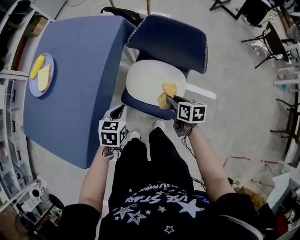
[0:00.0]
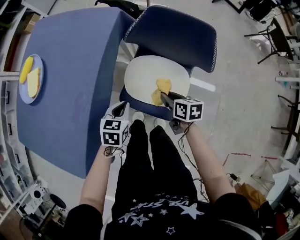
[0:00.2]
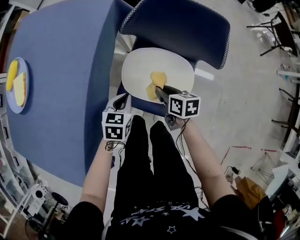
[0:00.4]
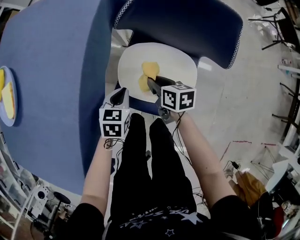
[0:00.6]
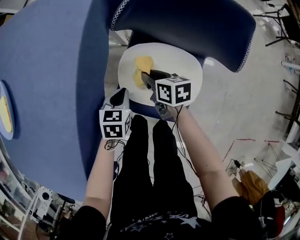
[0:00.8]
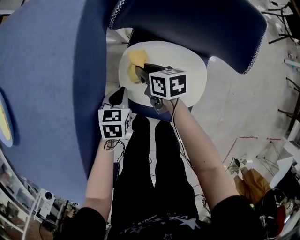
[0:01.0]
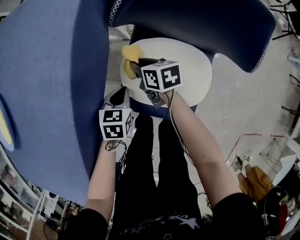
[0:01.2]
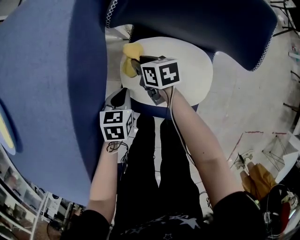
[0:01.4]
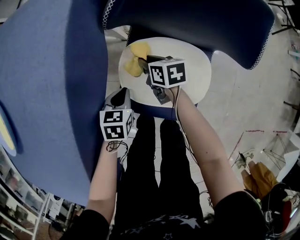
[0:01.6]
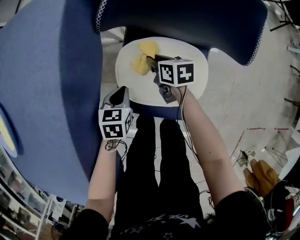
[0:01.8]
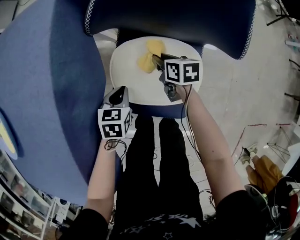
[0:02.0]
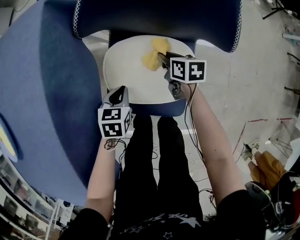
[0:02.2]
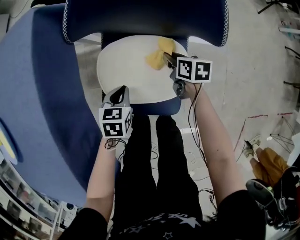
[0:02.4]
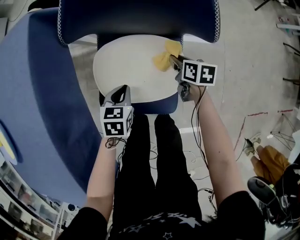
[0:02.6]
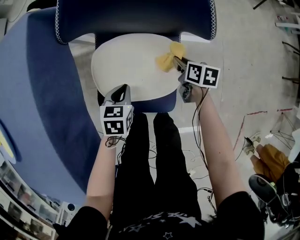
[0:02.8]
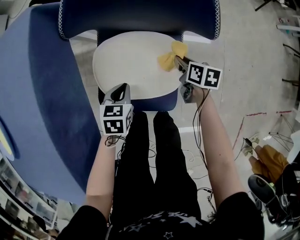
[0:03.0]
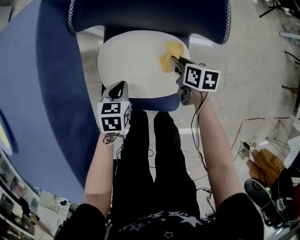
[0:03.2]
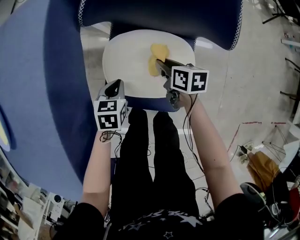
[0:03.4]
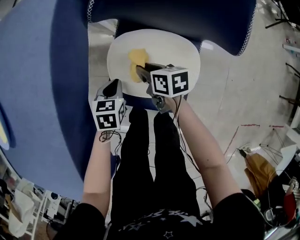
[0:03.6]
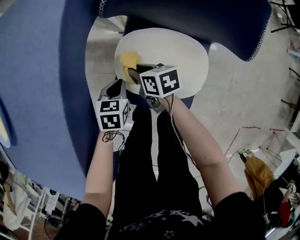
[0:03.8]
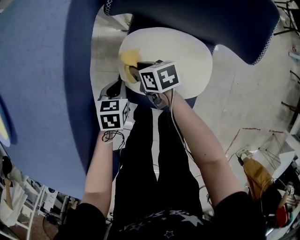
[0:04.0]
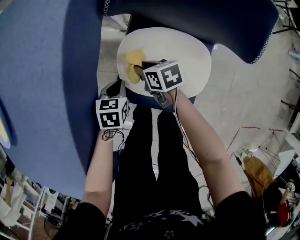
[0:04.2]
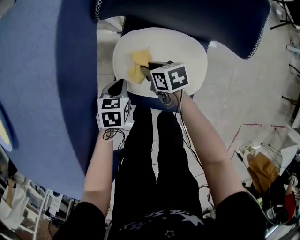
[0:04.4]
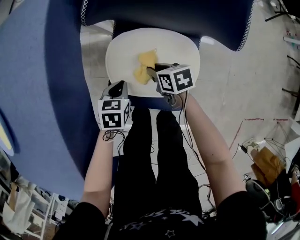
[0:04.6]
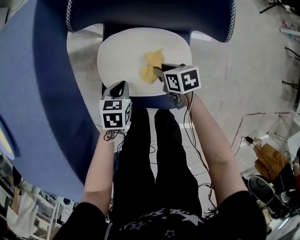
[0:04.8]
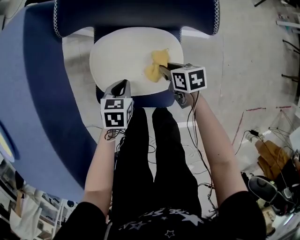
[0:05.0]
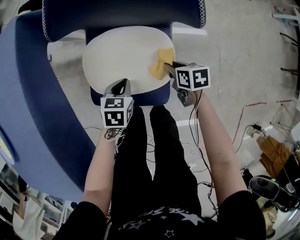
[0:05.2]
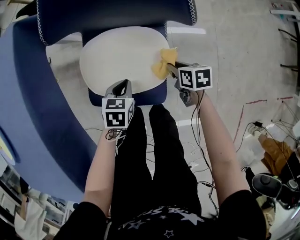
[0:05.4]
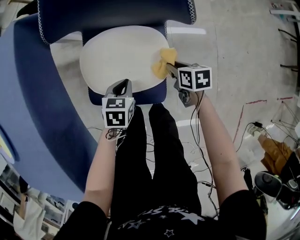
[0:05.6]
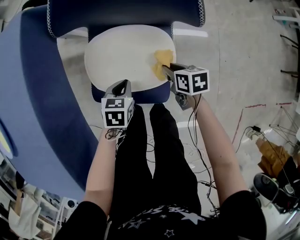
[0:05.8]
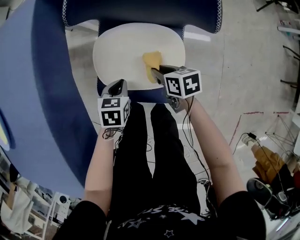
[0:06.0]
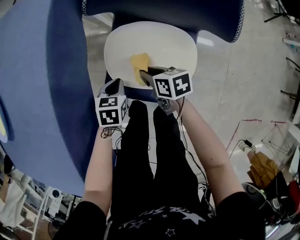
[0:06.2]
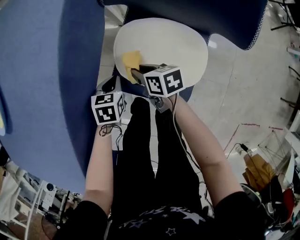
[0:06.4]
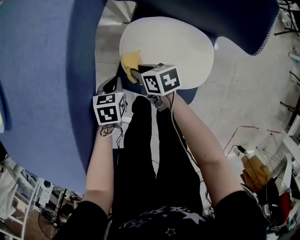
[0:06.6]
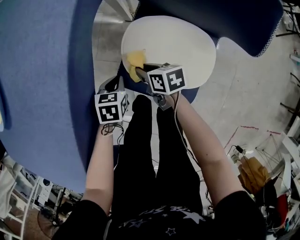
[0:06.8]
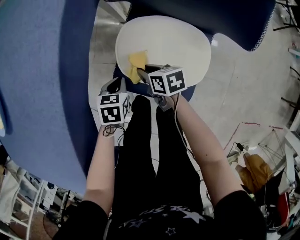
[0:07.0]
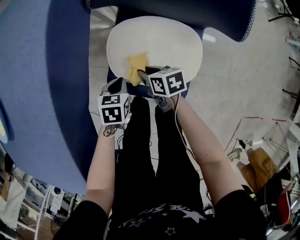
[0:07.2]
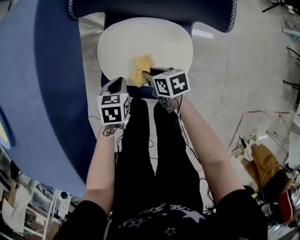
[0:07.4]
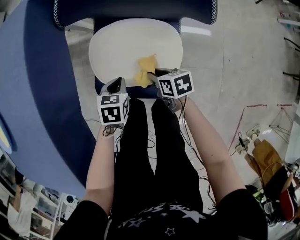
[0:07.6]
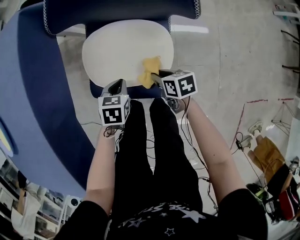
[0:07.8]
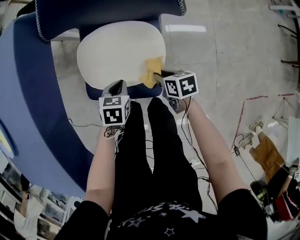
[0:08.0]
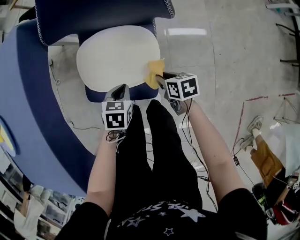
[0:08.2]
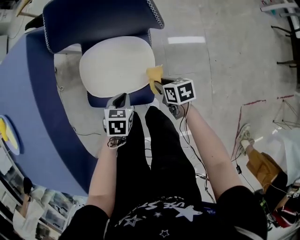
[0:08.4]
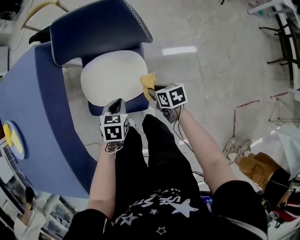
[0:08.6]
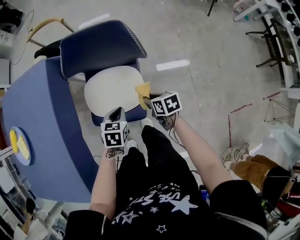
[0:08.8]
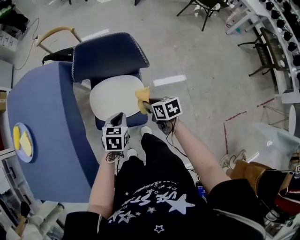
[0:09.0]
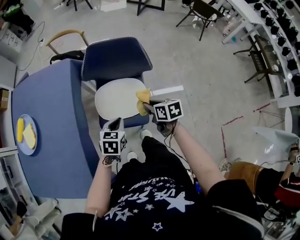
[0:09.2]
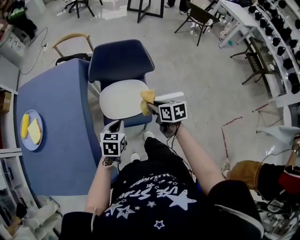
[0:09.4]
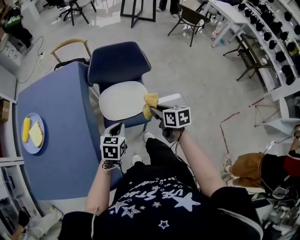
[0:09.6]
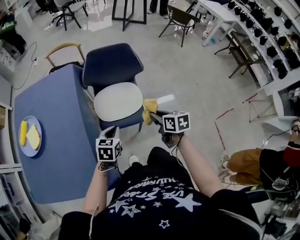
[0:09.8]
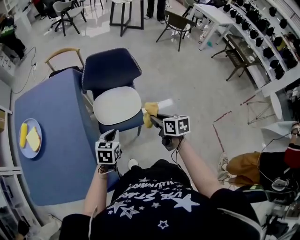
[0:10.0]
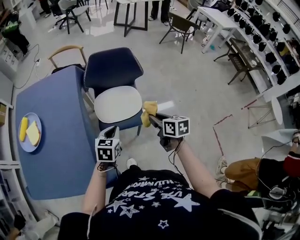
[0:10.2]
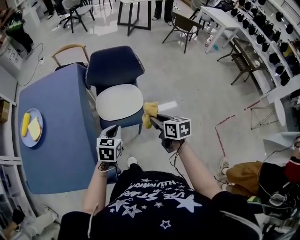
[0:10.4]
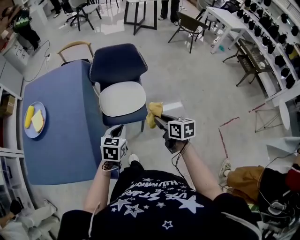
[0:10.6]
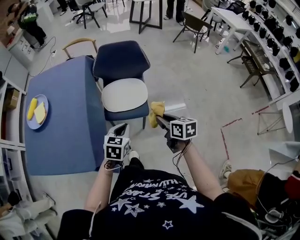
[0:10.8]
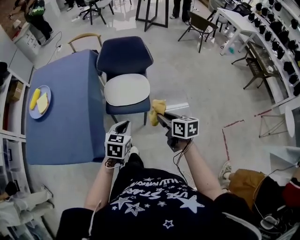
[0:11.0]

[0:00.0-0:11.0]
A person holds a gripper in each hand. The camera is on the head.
0:00.0 to 0:01.6: The right gripper heads downward, forward and to the left, covering approximately 35 cm; the left gripper moves downward and forward, roughly 30 cm.
0:01.6 to 0:03.2: The right gripper travels to the right by approximately 20 cm. Meanwhile the left gripper goes approximately 10 cm to the right.
0:03.2 to 0:04.8: The left gripper travels to the left and back again, about 10 cm each way. The right gripper reaches about 25 cm to the left, then returns.
0:04.8 to 0:06.2: The right gripper moves some 15 cm to the right and comes back; the left gripper moves approximately 10 cm to the right and comes back.
0:06.2 to 0:07.8: The left gripper travels to the right by roughly 10 cm. Meanwhile the right gripper travels to the right and backward by roughly 15 cm.
0:07.8 to 0:09.4: The two grippers go about 30 cm upward. The left gripper changes its angle by some 20 degrees. Meanwhile the right gripper swivels about 30 degrees.
0:09.4 to 0:11.0: Both grippers move backward, some 20 cm.

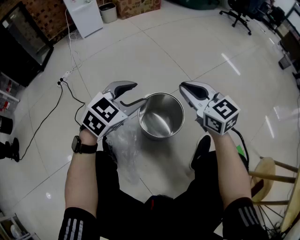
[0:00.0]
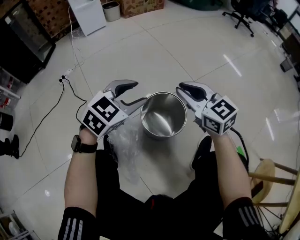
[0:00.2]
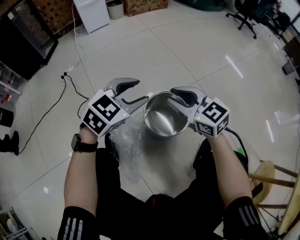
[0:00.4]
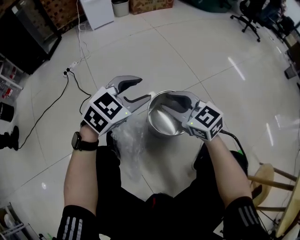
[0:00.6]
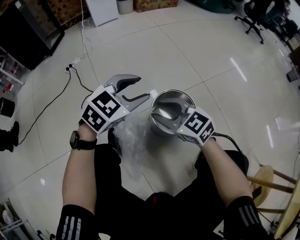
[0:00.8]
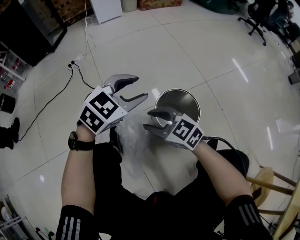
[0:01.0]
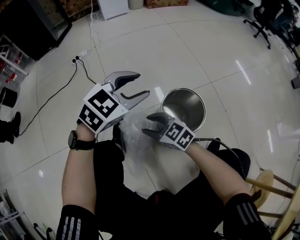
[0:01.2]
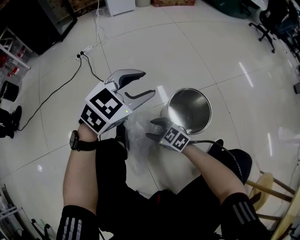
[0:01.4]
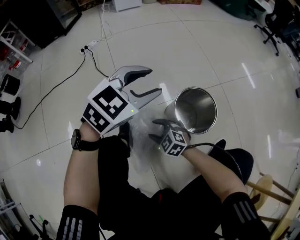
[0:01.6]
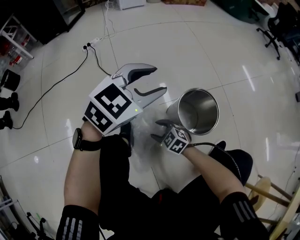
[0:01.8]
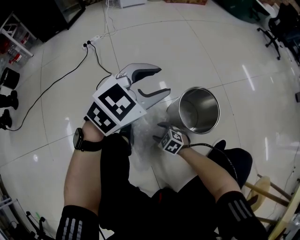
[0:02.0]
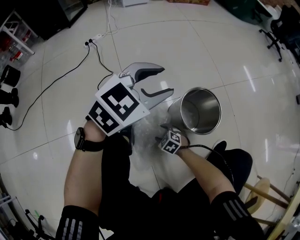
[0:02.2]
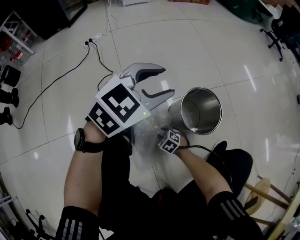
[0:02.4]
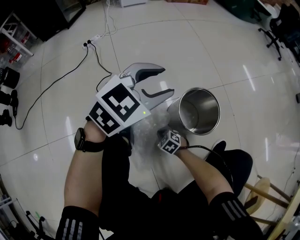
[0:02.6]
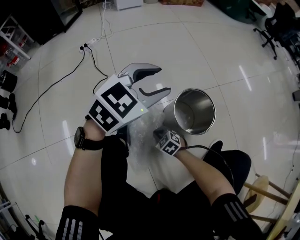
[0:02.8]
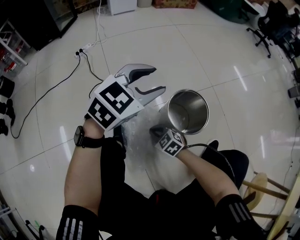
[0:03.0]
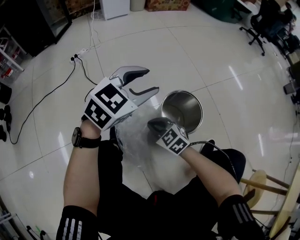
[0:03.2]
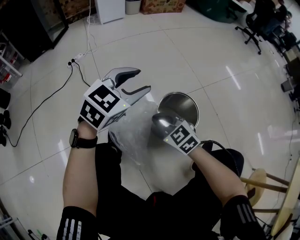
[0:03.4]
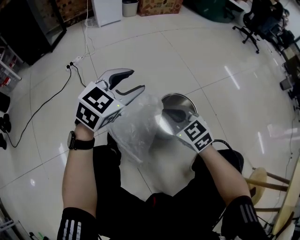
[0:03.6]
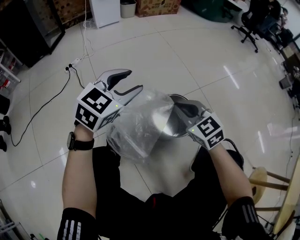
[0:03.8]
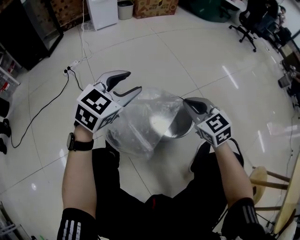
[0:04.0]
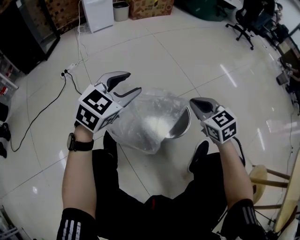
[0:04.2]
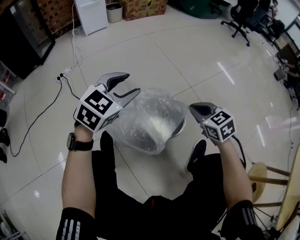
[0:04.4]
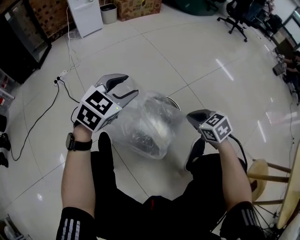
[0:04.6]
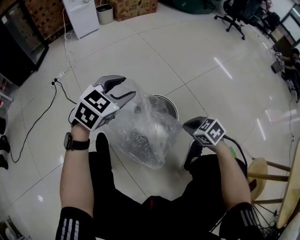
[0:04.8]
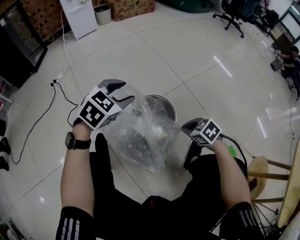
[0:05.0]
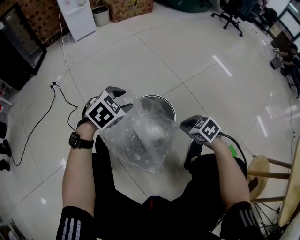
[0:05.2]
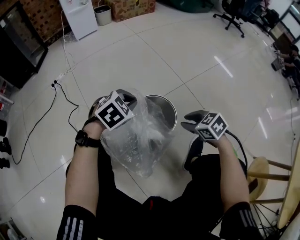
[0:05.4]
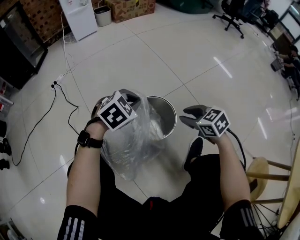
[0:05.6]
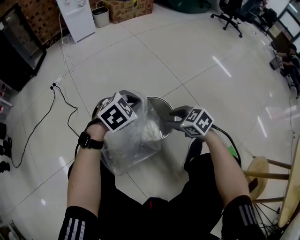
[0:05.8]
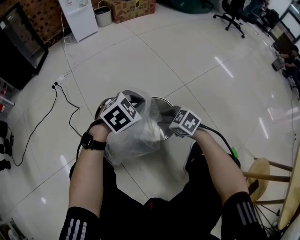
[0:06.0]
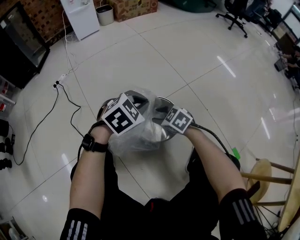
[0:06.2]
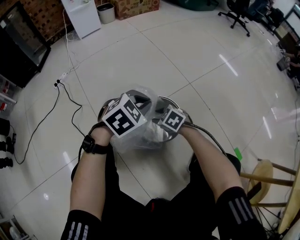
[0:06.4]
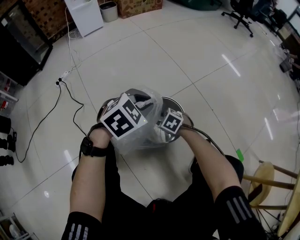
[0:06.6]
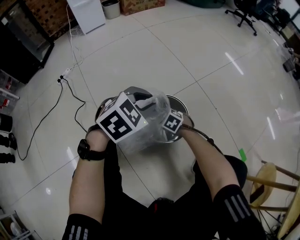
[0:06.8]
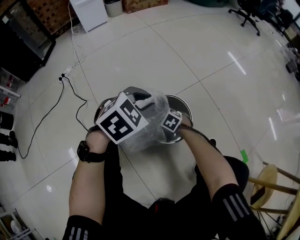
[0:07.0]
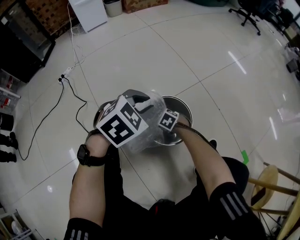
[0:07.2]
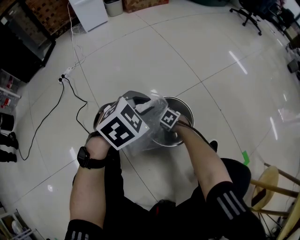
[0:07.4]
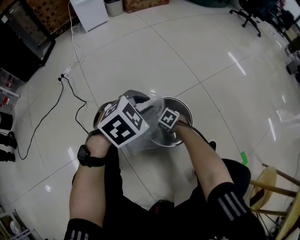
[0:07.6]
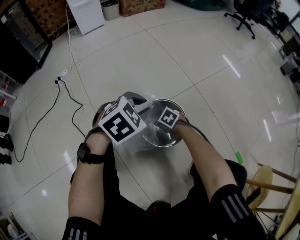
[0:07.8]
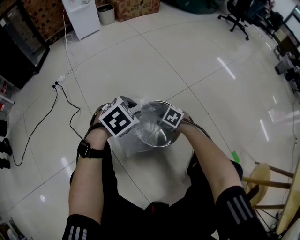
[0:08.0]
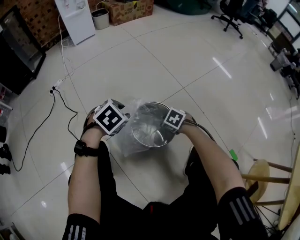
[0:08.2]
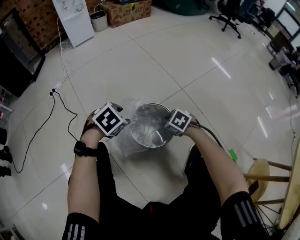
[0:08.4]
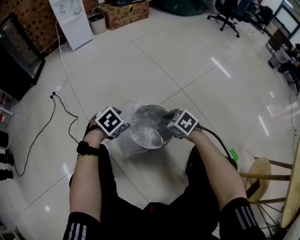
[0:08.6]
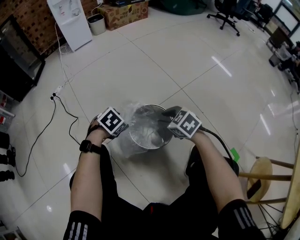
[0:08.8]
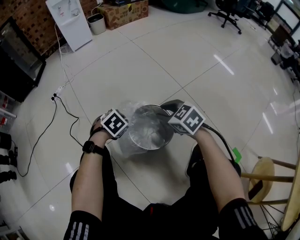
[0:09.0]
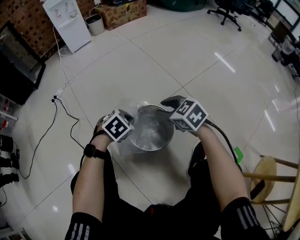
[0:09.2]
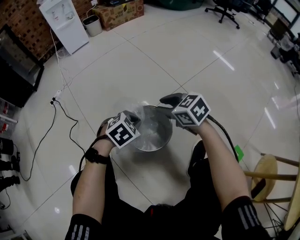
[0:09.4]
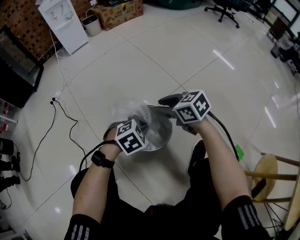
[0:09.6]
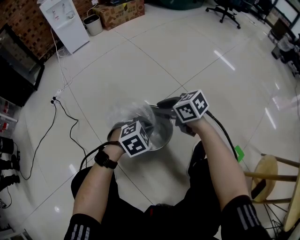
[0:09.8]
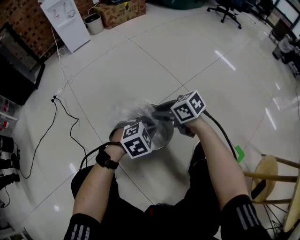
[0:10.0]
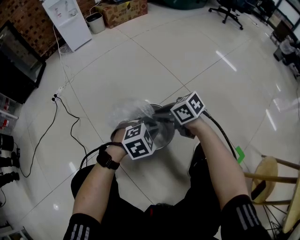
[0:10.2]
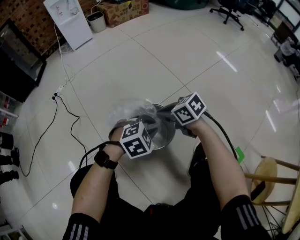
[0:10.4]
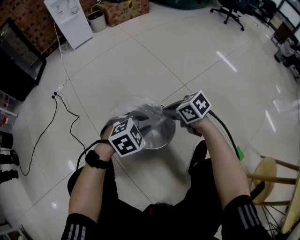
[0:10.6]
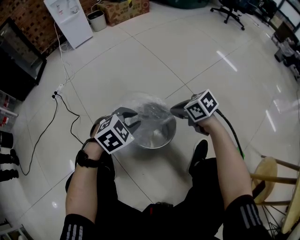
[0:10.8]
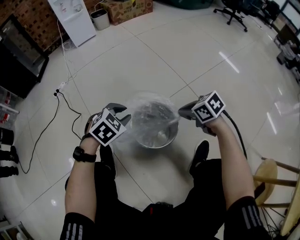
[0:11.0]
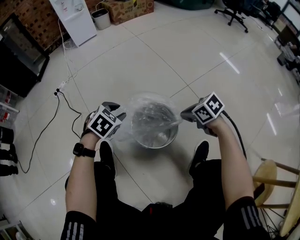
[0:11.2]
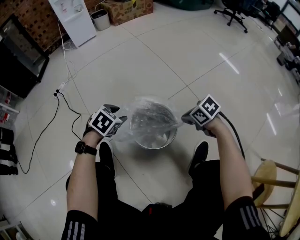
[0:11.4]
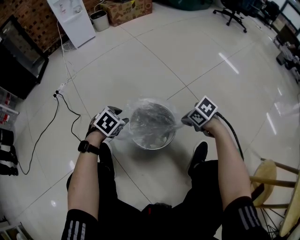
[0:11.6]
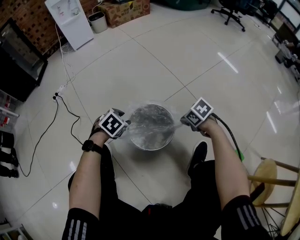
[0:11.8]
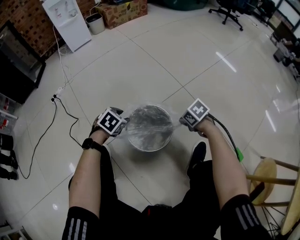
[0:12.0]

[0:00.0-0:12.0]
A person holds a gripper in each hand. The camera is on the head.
0:00.0 to 0:01.6: The left gripper is displaced to the left by approximately 15 cm. Meanwhile the right gripper goes roughly 40 cm downward, to the left and backward, points its fingers approximately 30 degrees further downward, and opens.
0:01.6 to 0:03.0: The right gripper goes downward and returns, some 15 cm each way, and closes.
0:03.0 to 0:04.4: The left gripper travels to the right by approximately 5 cm, while the right gripper shifts approximately 35 cm to the right, upward and forward, and changes its angle by roughly 30 degrees.
0:04.4 to 0:06.0: The left gripper moves to the right and downward, some 15 cm, changes its angle by approximately 20 degrees, and closes up; the right gripper goes up and down, about 10 cm each way, reversing 2 times, changes its angle by approximately 20 degrees, and opens its fingers.
0:06.0 to 0:07.6: The right gripper goes approximately 20 cm downward.
0:07.6 to 0:09.0: The left gripper moves downward, roughly 15 cm, changes its angle by roughly 20 degrees, and opens, then closes once more; the right gripper moves upward, approximately 25 cm, and swivels some 30 degrees.
0:09.0 to 0:10.4: The left gripper ends up approximately 15 cm from where it was, and changes its angle by some 30 degrees. Meanwhile the right gripper rotates some 30 degrees, and closes up.
0:10.4 to 0:12.0: The left gripper changes place by about 15 cm, and swivels about 30 degrees, while the right gripper shifts by roughly 15 cm, and swivels some 30 degrees.
